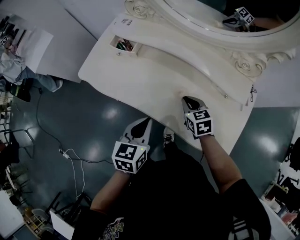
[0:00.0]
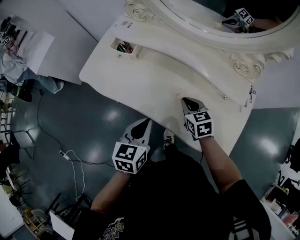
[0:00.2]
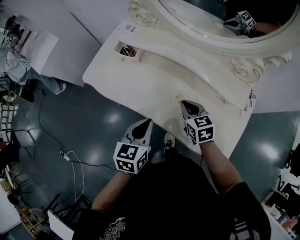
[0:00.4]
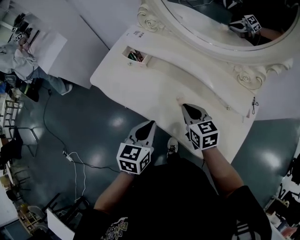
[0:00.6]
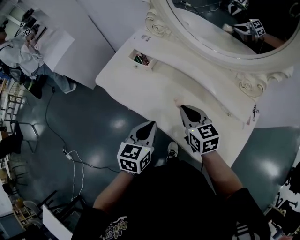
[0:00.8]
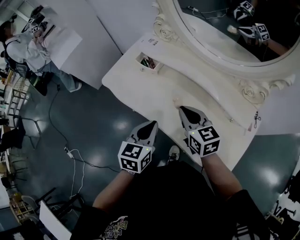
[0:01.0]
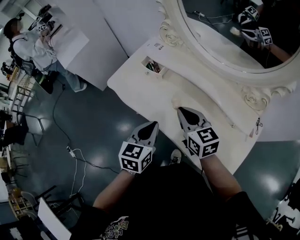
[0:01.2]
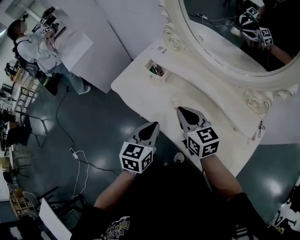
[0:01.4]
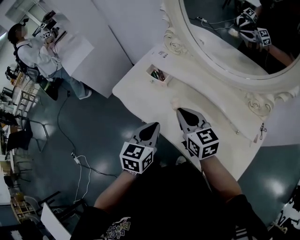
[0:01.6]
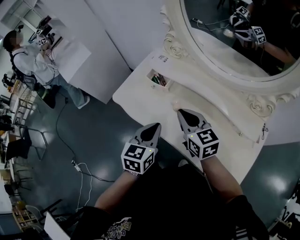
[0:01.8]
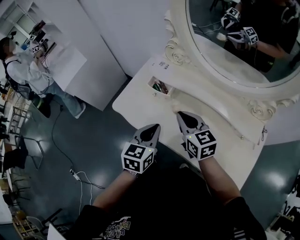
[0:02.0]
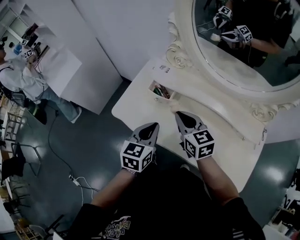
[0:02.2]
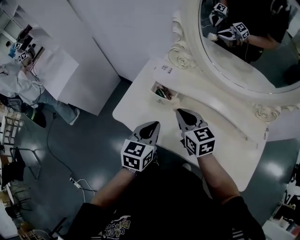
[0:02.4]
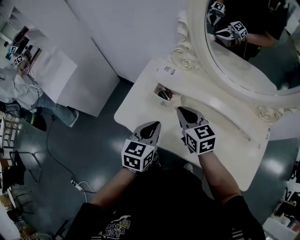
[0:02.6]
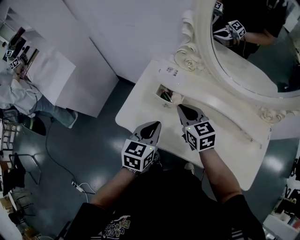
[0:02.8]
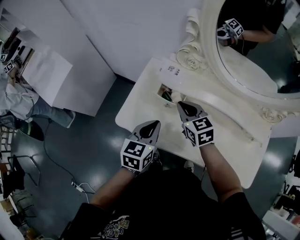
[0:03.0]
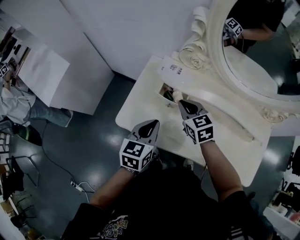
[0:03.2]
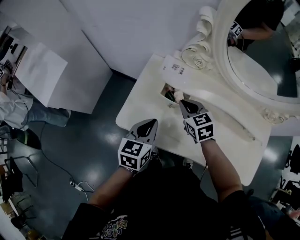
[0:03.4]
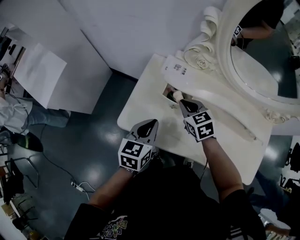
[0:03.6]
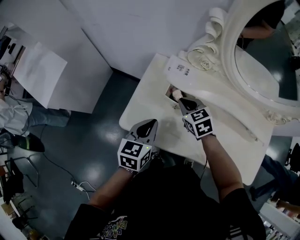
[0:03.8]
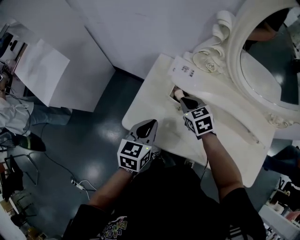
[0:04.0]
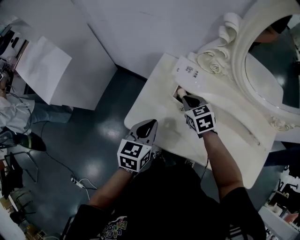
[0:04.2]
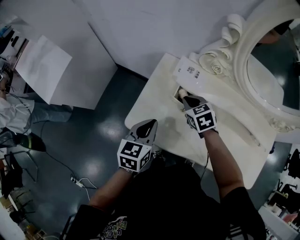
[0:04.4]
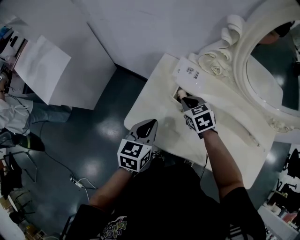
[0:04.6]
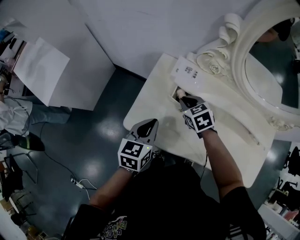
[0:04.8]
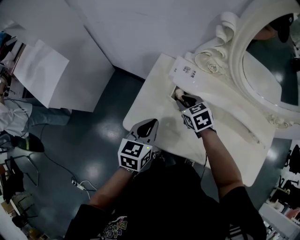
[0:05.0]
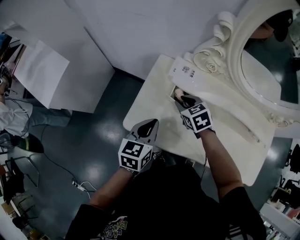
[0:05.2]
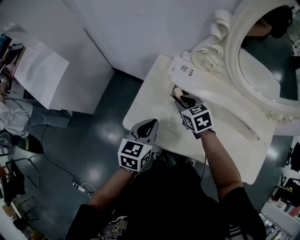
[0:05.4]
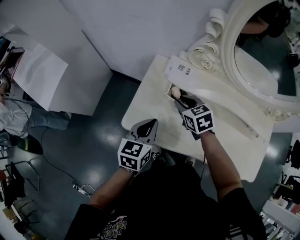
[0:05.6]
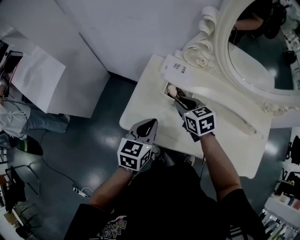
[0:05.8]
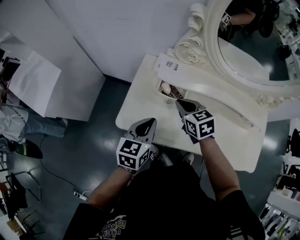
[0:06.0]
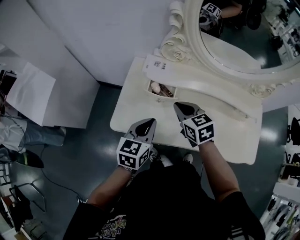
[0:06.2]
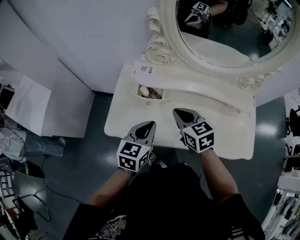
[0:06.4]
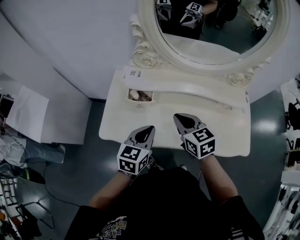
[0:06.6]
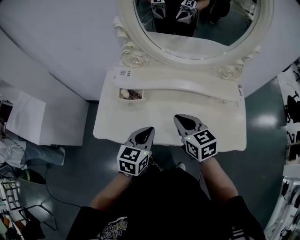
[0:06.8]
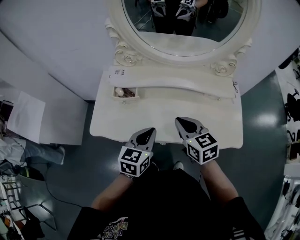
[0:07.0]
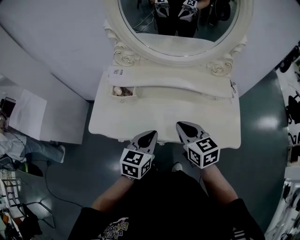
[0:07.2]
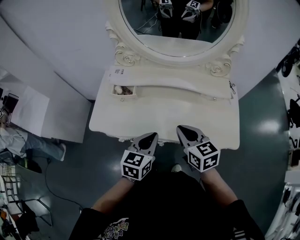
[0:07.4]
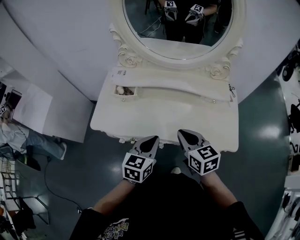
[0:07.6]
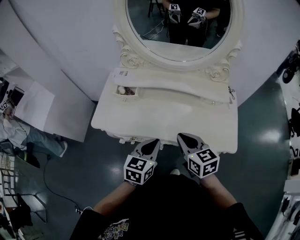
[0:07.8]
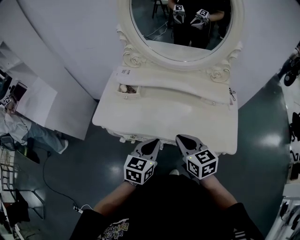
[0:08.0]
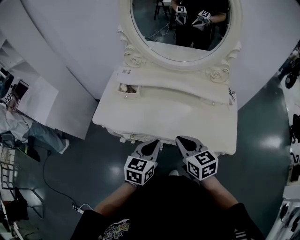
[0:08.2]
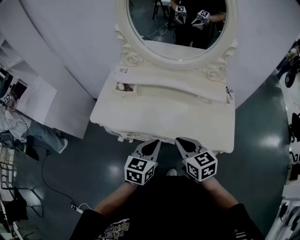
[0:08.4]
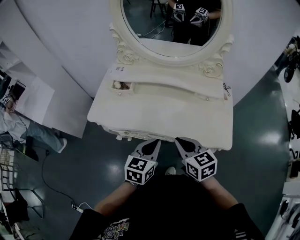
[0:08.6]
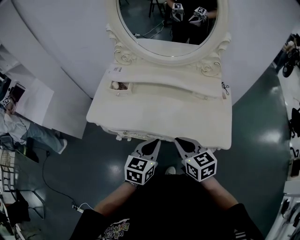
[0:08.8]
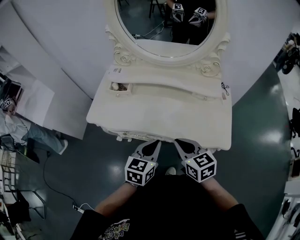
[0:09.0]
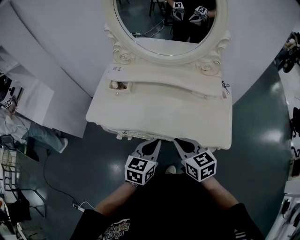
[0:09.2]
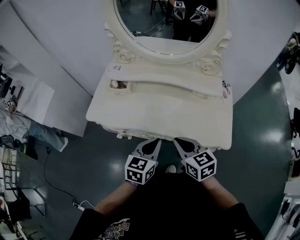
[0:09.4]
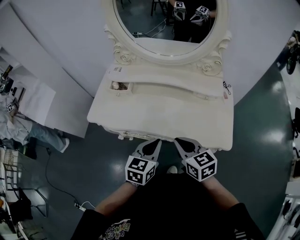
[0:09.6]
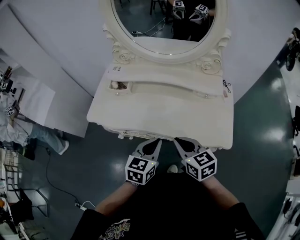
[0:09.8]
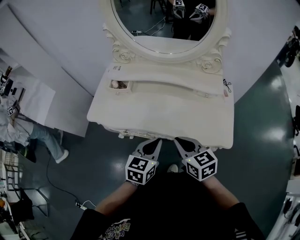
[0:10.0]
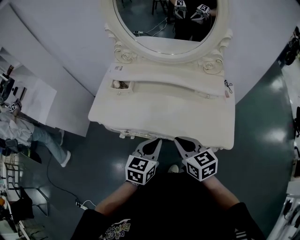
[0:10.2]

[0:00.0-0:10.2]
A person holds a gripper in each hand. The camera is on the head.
0:00.0 to 0:01.4: The right gripper is displaced upward and to the left by roughly 20 cm, and swivels approximately 30 degrees, while the left gripper is displaced upward by some 5 cm.
0:01.4 to 0:03.0: Both grippers move forward and to the left, some 25 cm.
0:03.0 to 0:04.4: The left gripper travels to the left by some 10 cm, while the right gripper is displaced downward, forward and to the left by roughly 10 cm, and changes its angle by approximately 20 degrees.
0:04.4 to 0:05.8: The right gripper moves roughly 5 cm.
0:05.8 to 0:07.2: Both grippers travel together to the right and backward, about 30 cm. The right gripper changes its angle by approximately 20 degrees.
0:07.2 to 0:08.8: The grippers both shift backward and to the right by some 15 cm.
0:08.8 to 0:10.2: There are only small adjustments of the grippers.

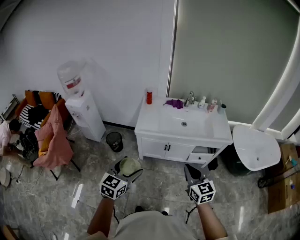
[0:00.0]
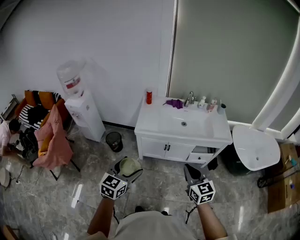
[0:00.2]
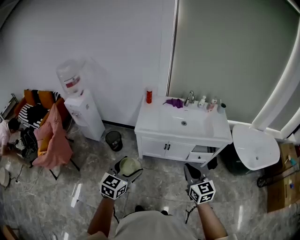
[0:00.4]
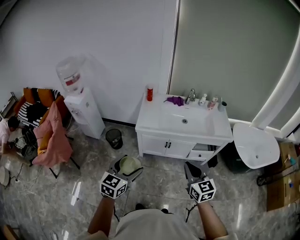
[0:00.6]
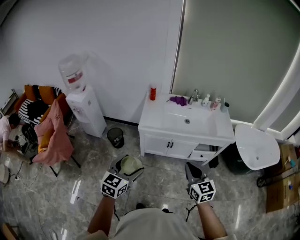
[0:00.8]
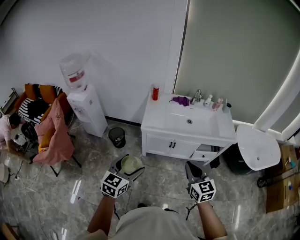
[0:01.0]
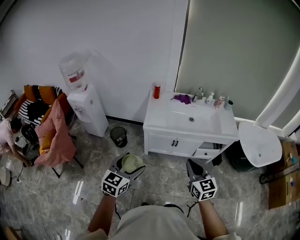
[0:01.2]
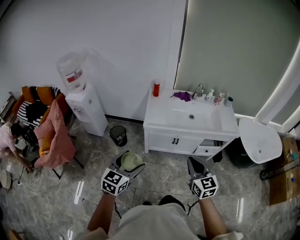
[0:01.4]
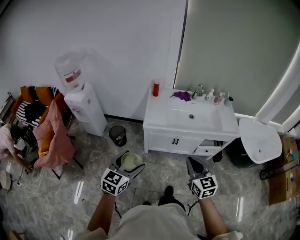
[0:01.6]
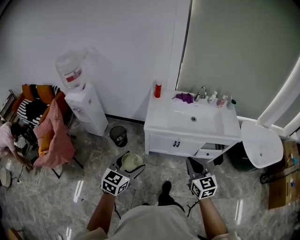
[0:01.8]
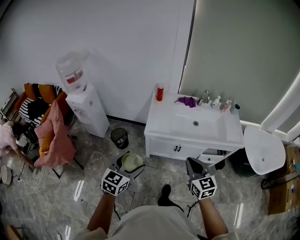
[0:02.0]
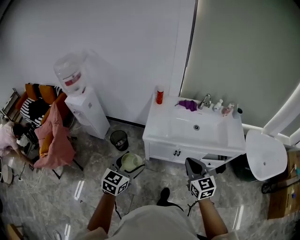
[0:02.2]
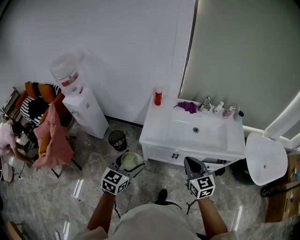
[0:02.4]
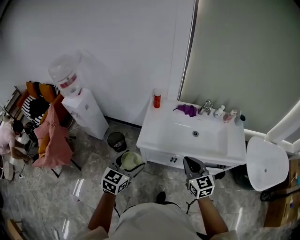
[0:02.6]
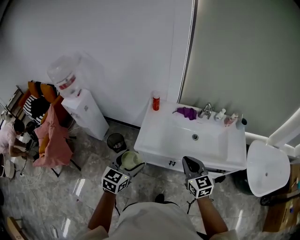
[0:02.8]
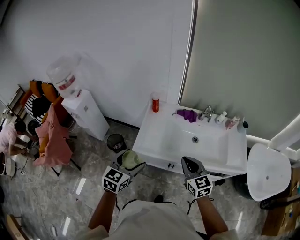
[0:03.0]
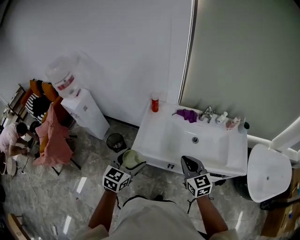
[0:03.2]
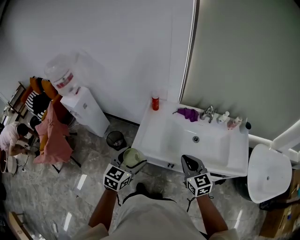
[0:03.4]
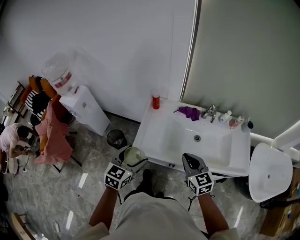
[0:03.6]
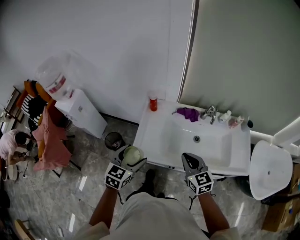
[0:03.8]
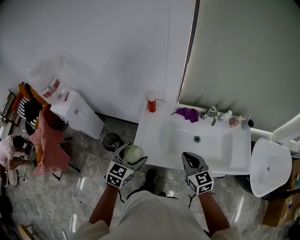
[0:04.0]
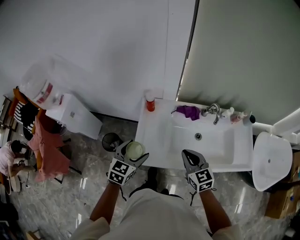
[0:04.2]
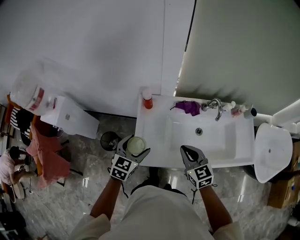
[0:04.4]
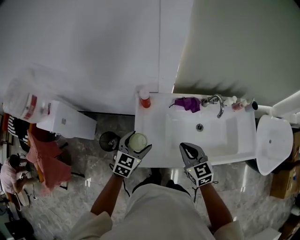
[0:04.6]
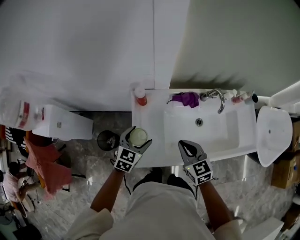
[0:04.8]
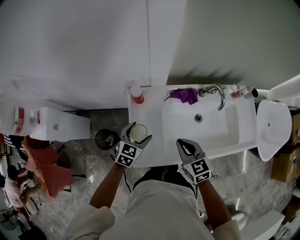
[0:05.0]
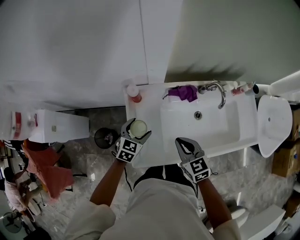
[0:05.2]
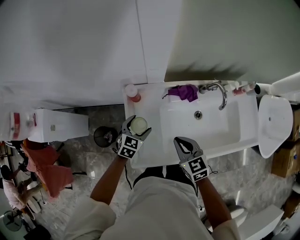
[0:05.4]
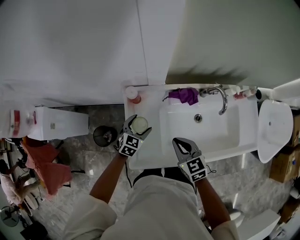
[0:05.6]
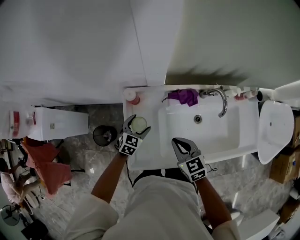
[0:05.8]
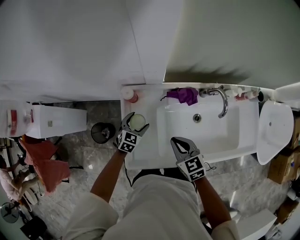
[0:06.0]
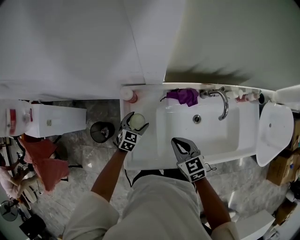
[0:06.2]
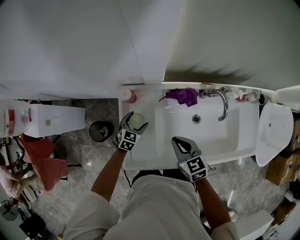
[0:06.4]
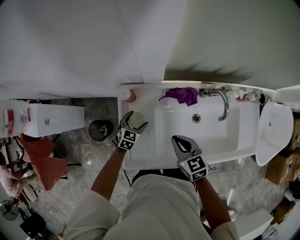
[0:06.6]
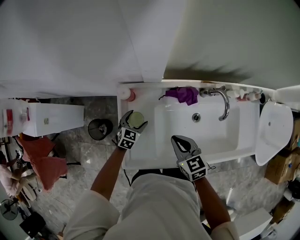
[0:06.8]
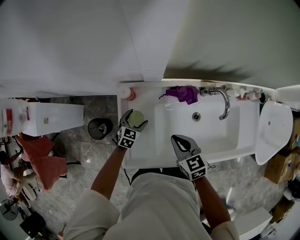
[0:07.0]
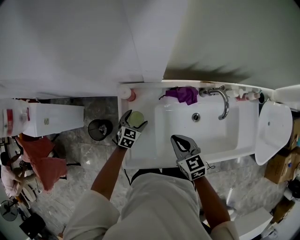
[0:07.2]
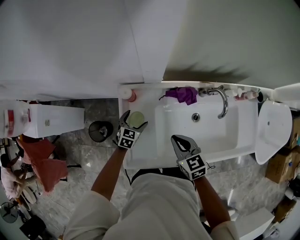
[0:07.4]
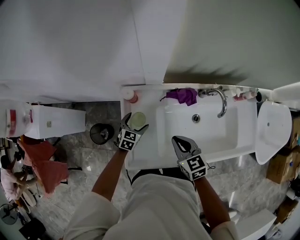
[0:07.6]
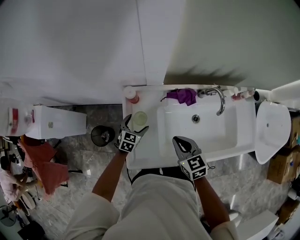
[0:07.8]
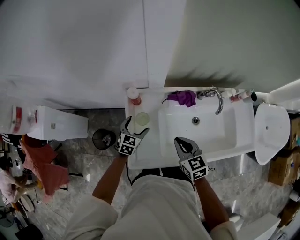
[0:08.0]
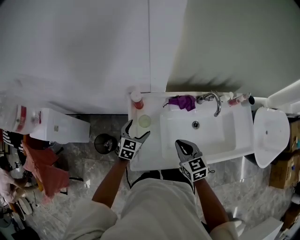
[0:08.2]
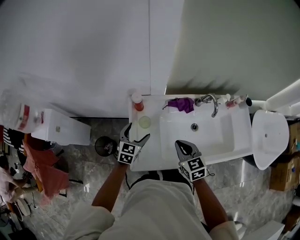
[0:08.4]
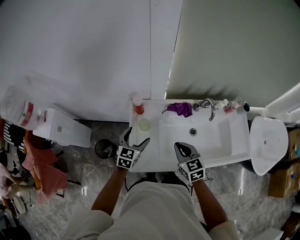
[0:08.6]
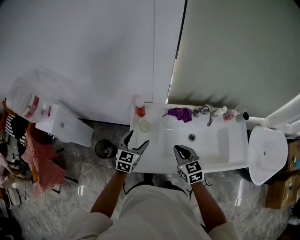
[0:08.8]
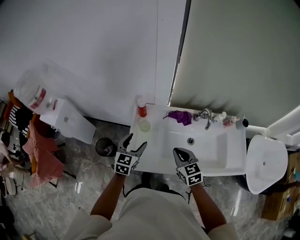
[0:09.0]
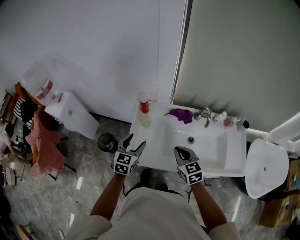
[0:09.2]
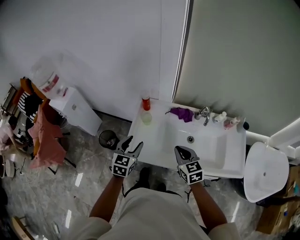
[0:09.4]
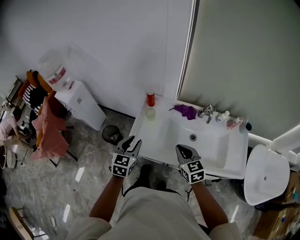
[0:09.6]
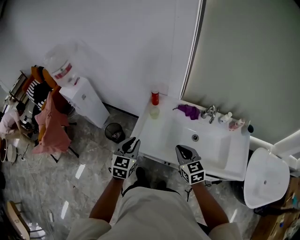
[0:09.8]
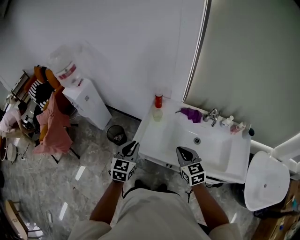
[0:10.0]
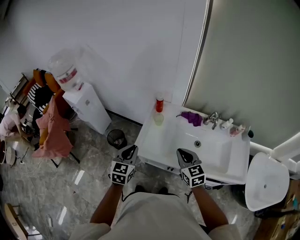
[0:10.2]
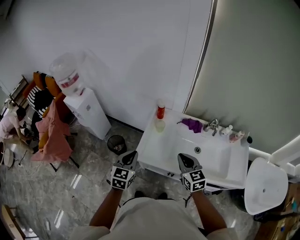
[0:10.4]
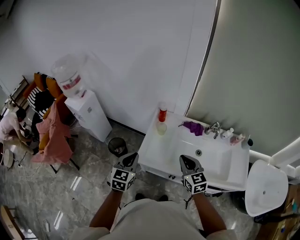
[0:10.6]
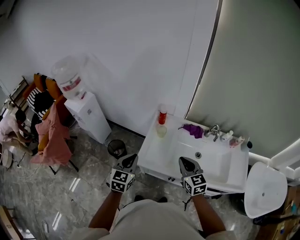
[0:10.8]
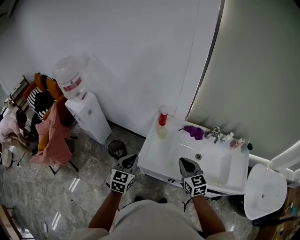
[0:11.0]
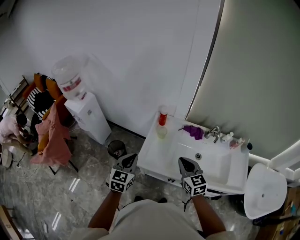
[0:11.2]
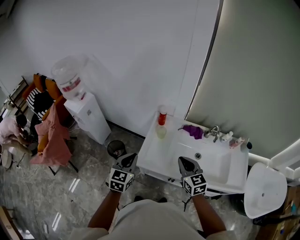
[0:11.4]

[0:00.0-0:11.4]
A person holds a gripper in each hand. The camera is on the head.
0:00.0 to 0:01.4: Both grippers travel together to the left, about 10 cm.
0:01.4 to 0:02.8: Both grippers move forward, approximately 30 cm.
0:02.8 to 0:04.2: The grippers both shift forward by some 20 cm.
0:04.2 to 0:05.6: The right gripper goes roughly 15 cm downward and forward. Meanwhile the left gripper is displaced downward and forward by about 30 cm.
0:05.6 to 0:07.2: The left gripper travels downward by some 10 cm.
0:07.2 to 0:08.6: The left gripper shifts approximately 25 cm upward and backward, while the right gripper is displaced upward and backward by roughly 10 cm.
0:08.6 to 0:10.0: The right gripper moves backward and upward, roughly 15 cm, while the left gripper goes about 25 cm backward and upward, rotates roughly 30 degrees, and closes its fingers.
0:10.0 to 0:11.4: The left gripper heads to the left, covering roughly 5 cm, while the right gripper shifts by some 5 cm.

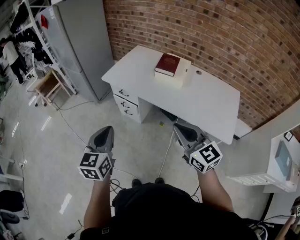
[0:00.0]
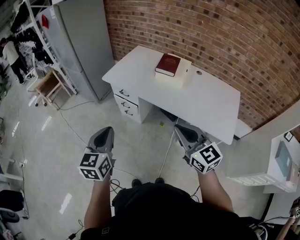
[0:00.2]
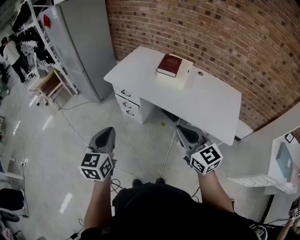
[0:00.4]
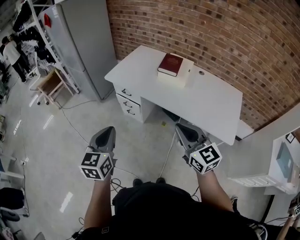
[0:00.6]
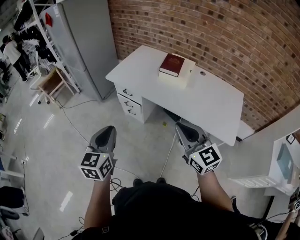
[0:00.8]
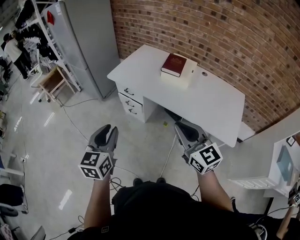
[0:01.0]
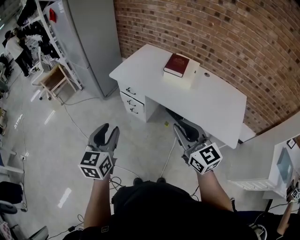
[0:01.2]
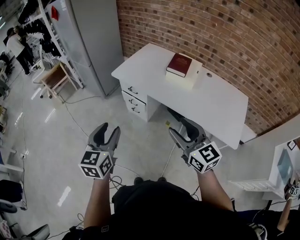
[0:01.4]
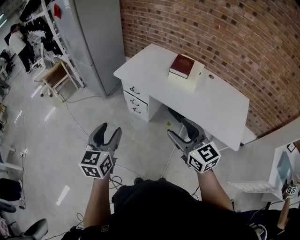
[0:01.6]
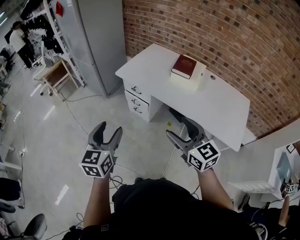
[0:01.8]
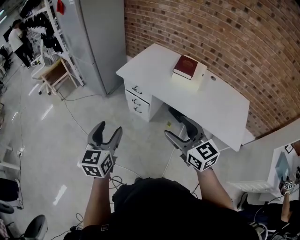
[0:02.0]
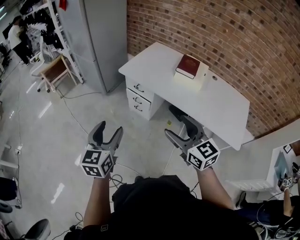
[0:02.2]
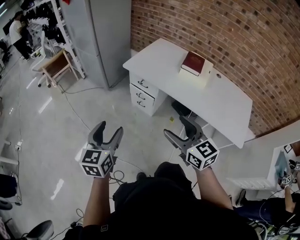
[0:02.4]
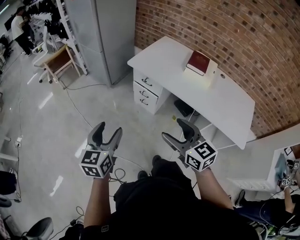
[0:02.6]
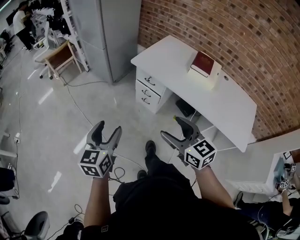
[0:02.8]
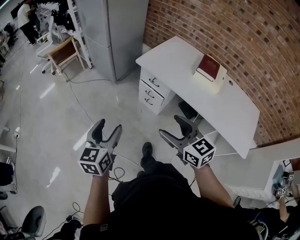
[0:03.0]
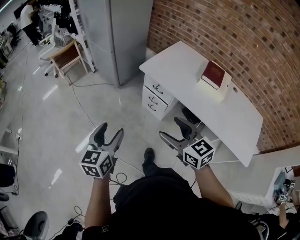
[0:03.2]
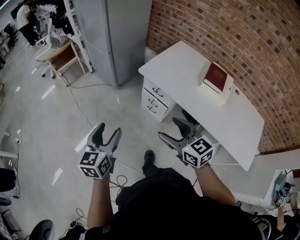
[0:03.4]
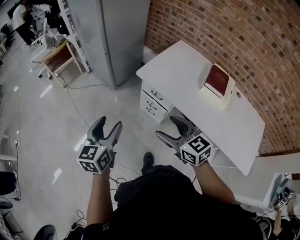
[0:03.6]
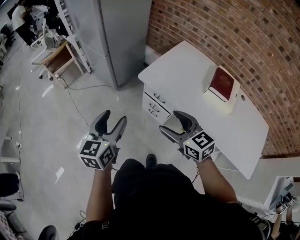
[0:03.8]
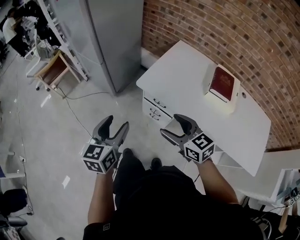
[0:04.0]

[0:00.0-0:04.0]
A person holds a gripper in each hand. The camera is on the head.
0:00.0 to 0:01.4: The left gripper opens. The right gripper opens.
0:01.4 to 0:02.6: The grippers both shift to the left by approximately 15 cm. The right gripper opens its fingers.
0:02.6 to 0:04.0: The two grippers go about 30 cm forward.
